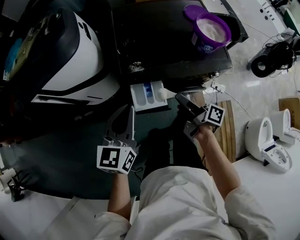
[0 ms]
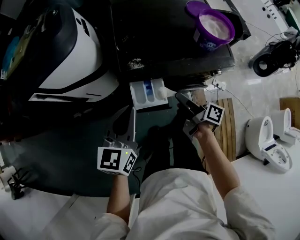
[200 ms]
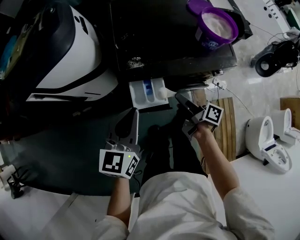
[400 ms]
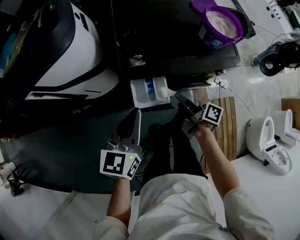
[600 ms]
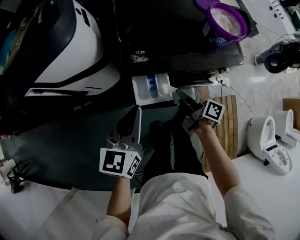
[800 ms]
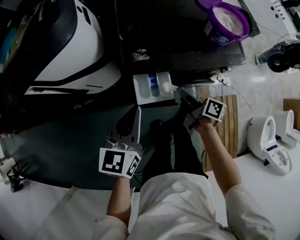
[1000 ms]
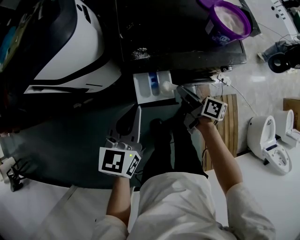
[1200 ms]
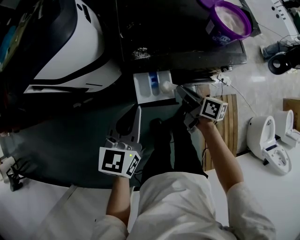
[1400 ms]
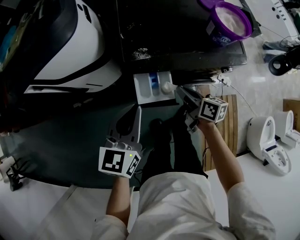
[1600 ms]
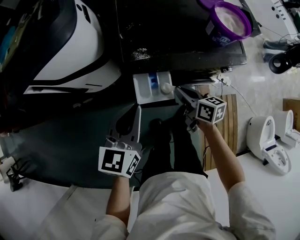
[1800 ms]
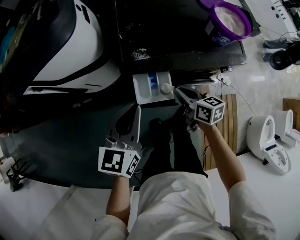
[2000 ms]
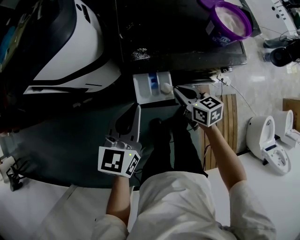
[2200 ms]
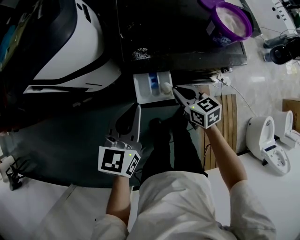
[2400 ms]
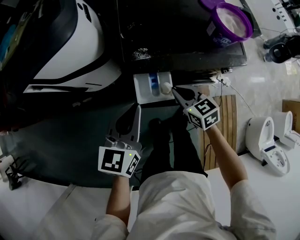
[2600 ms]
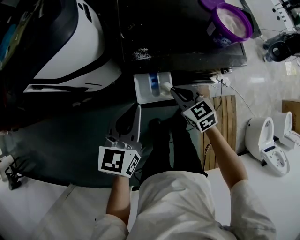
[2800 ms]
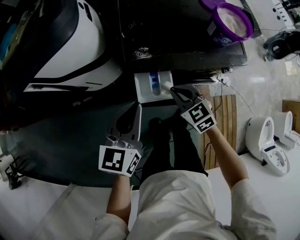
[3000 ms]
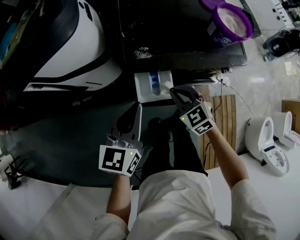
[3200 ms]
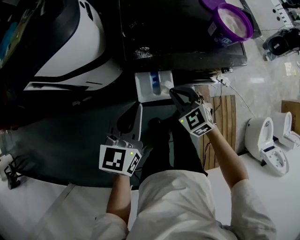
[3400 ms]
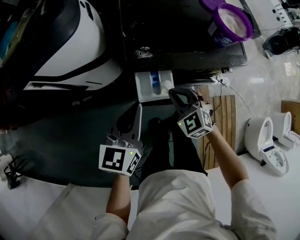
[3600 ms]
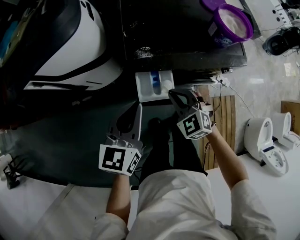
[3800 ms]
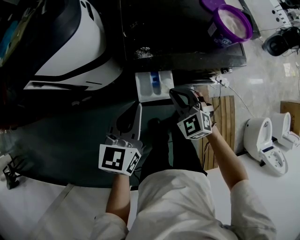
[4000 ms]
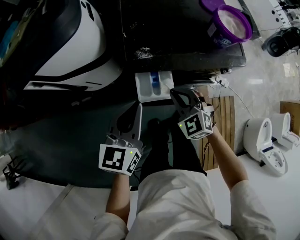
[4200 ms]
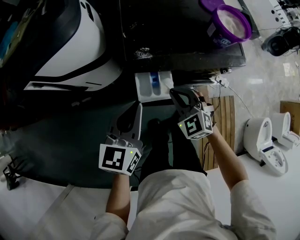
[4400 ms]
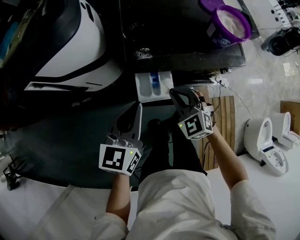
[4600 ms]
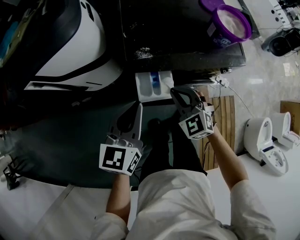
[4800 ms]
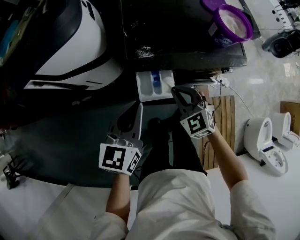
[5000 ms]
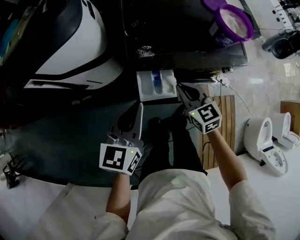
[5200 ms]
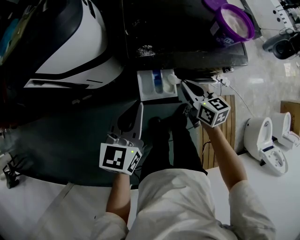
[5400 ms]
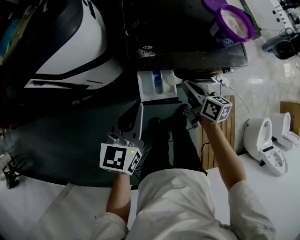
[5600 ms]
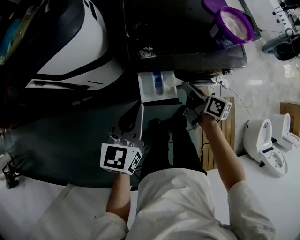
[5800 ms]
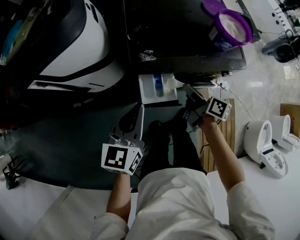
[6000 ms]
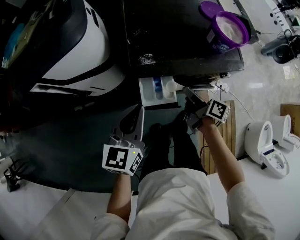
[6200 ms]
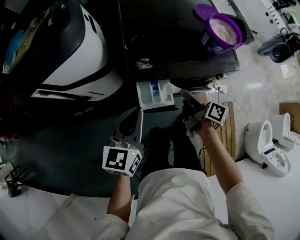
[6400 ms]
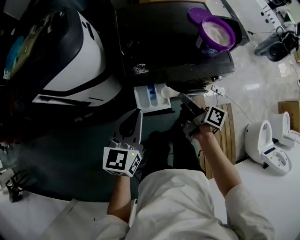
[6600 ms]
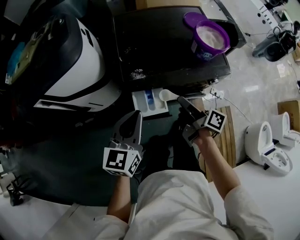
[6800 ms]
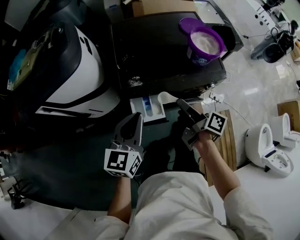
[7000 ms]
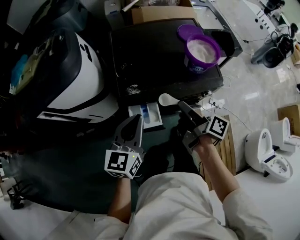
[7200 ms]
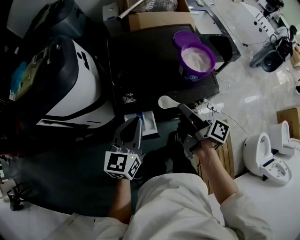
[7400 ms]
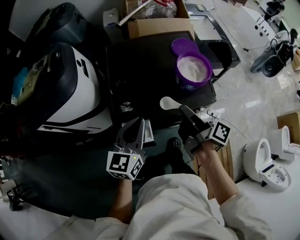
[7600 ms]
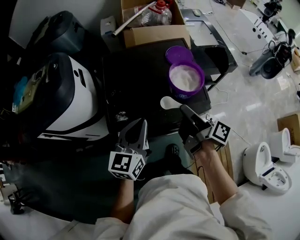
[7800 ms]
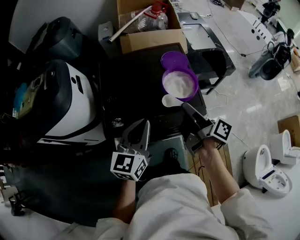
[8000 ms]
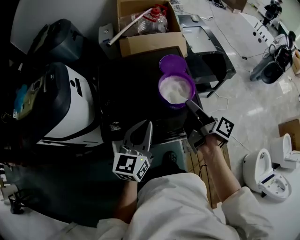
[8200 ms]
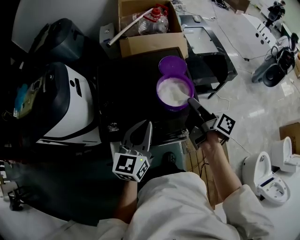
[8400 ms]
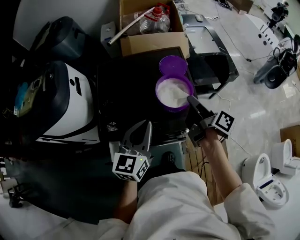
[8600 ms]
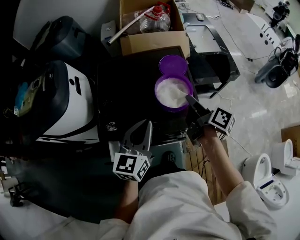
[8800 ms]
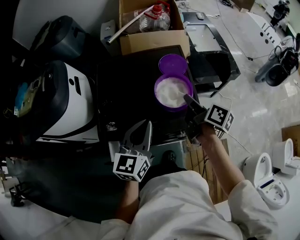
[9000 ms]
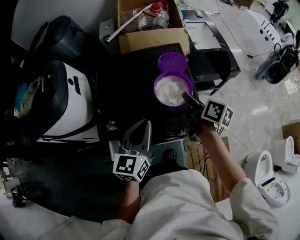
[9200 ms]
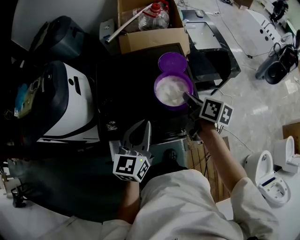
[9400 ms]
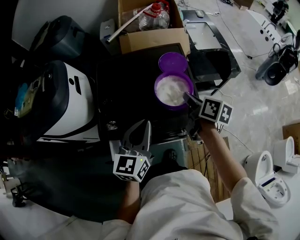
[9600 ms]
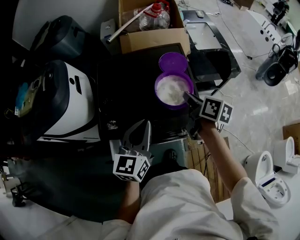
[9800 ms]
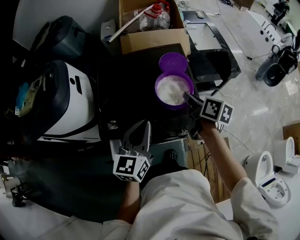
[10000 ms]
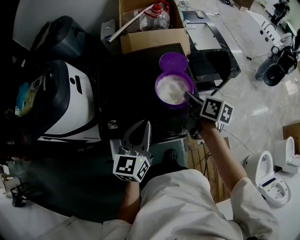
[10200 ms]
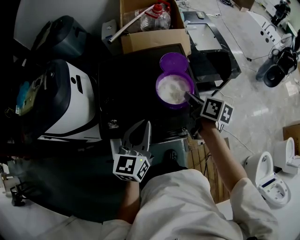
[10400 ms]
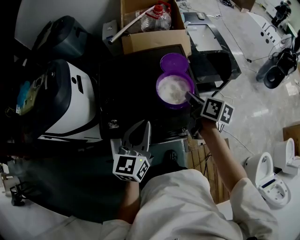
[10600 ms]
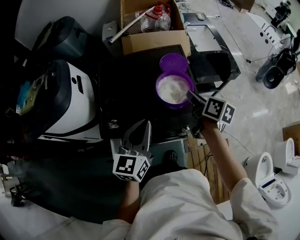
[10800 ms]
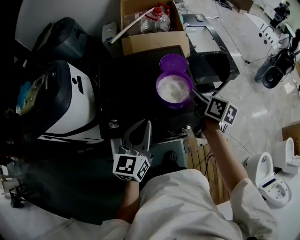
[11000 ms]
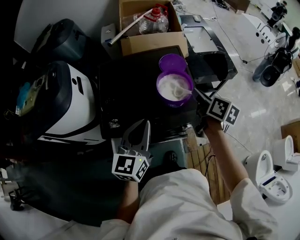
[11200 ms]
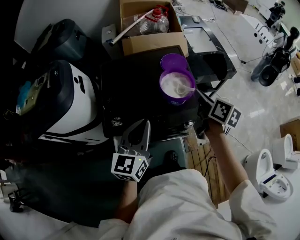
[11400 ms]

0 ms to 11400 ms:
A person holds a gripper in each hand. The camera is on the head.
0 ms to 1400 ms: The right gripper travels downward by about 5 cm, and rotates roughly 30 degrees.
1400 ms to 2800 ms: The right gripper rotates around the line of its fingers by some 60 degrees, counterclockwise from behind.
2800 ms to 4200 ms: The right gripper changes its angle by roughly 30 degrees.
4200 ms to 5600 ms: The right gripper travels to the right by roughly 5 cm, and rolls clockwise, seen from behind, by approximately 70 degrees.
5600 ms to 7200 ms: The right gripper moves upward, approximately 15 cm, and changes its angle by roughly 40 degrees. The left gripper moves to the right and upward, about 10 cm.
7200 ms to 8600 ms: Both grippers move to the right and forward, about 25 cm.
8600 ms to 10000 ms: The right gripper changes its angle by about 30 degrees.
10000 ms to 11400 ms: The right gripper moves approximately 5 cm; the left gripper ends up roughly 5 cm from where it was.

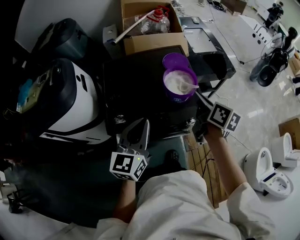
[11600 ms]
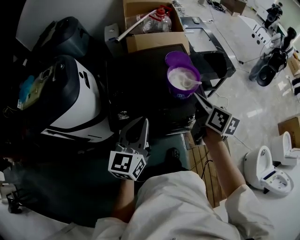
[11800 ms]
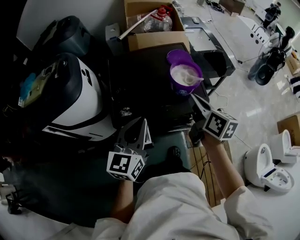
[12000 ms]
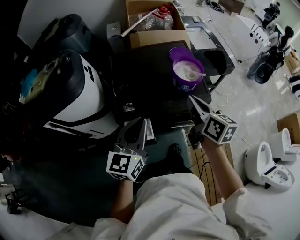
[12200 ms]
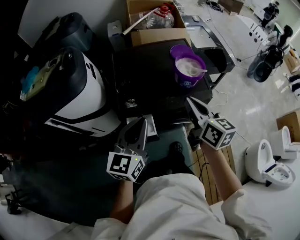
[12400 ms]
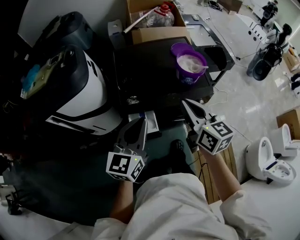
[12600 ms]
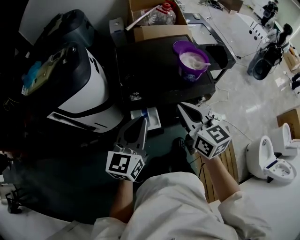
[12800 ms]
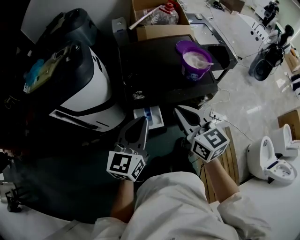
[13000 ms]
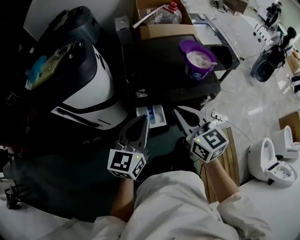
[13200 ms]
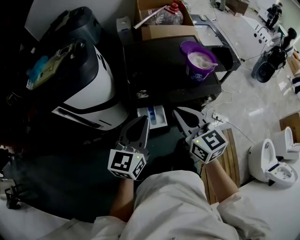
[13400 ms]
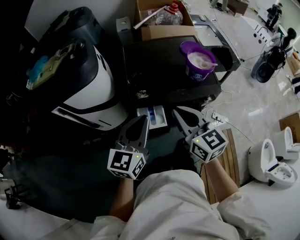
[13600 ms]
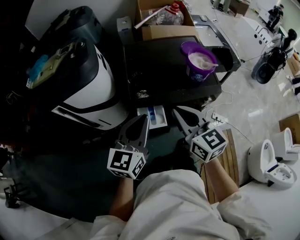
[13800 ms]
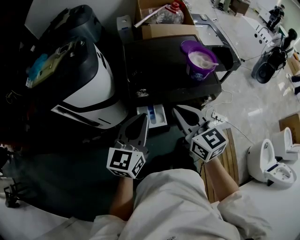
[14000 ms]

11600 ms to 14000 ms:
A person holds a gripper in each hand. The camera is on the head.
11600 ms to 12800 ms: The left gripper goes approximately 15 cm backward and to the left. Meanwhile the right gripper shifts about 25 cm backward and to the left, and turns by roughly 30 degrees.
12800 ms to 14000 ms: The right gripper shifts some 5 cm to the left.

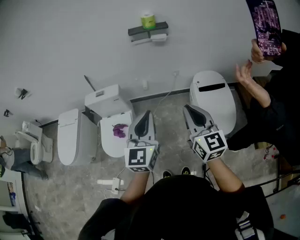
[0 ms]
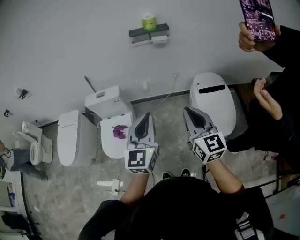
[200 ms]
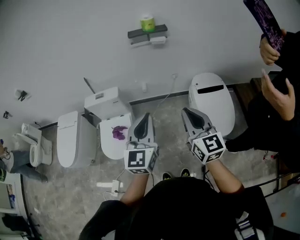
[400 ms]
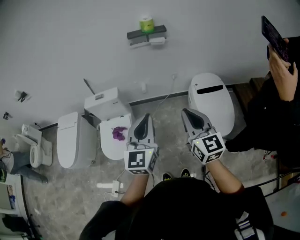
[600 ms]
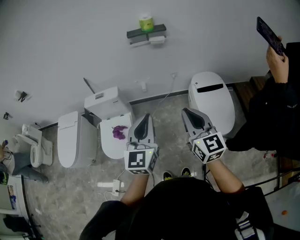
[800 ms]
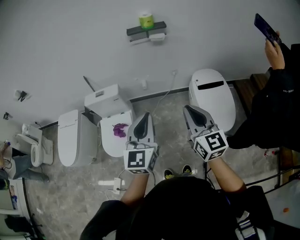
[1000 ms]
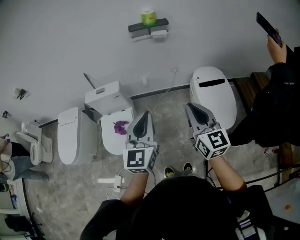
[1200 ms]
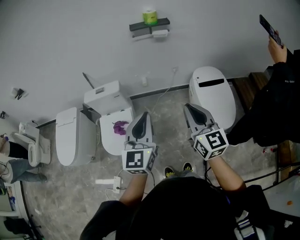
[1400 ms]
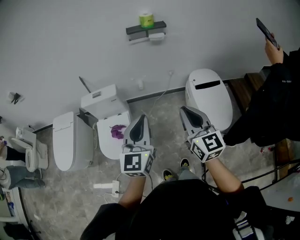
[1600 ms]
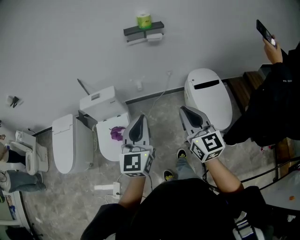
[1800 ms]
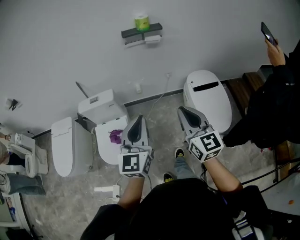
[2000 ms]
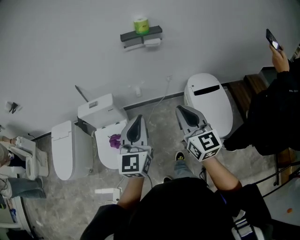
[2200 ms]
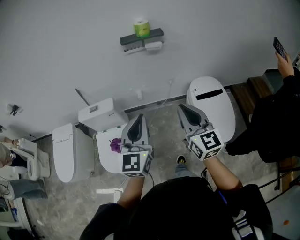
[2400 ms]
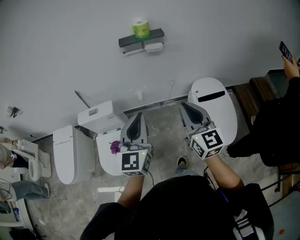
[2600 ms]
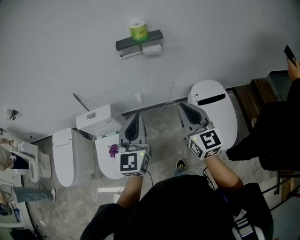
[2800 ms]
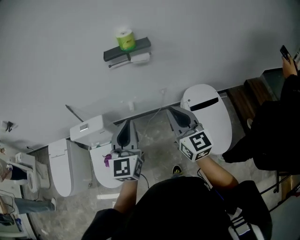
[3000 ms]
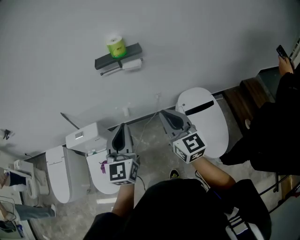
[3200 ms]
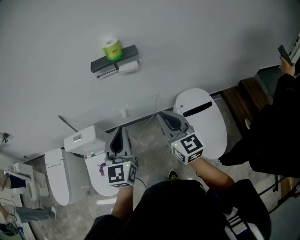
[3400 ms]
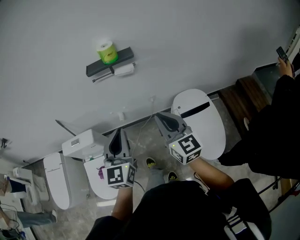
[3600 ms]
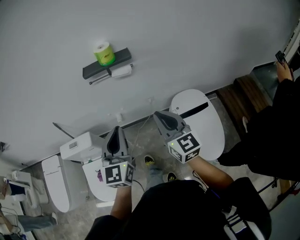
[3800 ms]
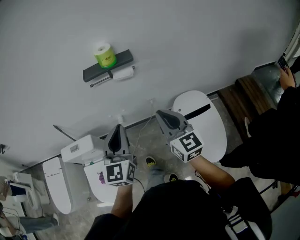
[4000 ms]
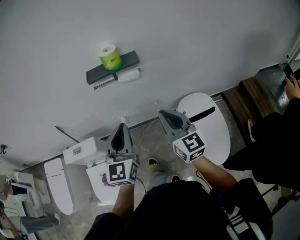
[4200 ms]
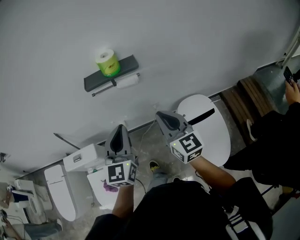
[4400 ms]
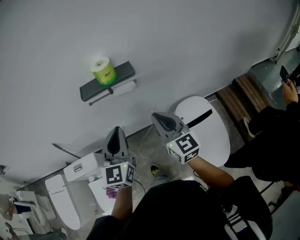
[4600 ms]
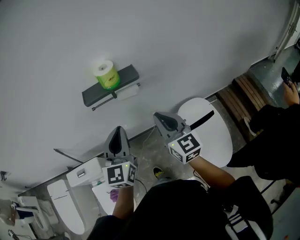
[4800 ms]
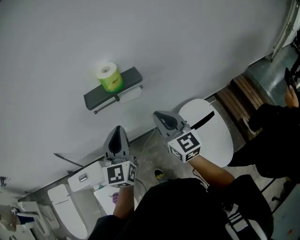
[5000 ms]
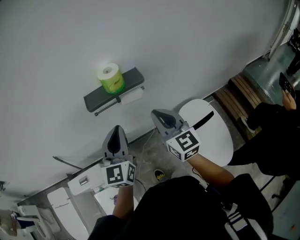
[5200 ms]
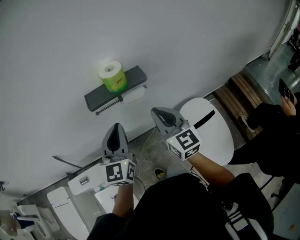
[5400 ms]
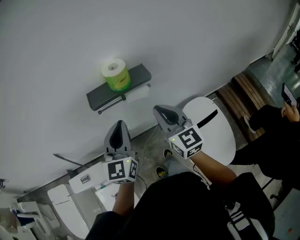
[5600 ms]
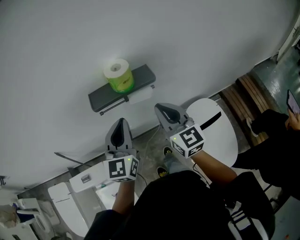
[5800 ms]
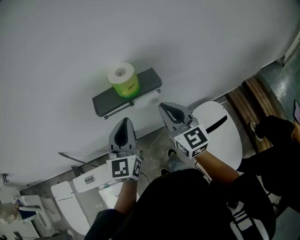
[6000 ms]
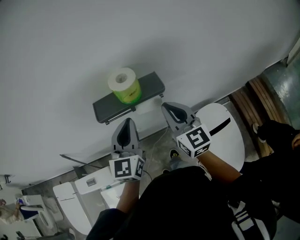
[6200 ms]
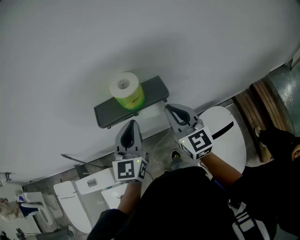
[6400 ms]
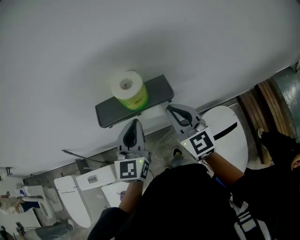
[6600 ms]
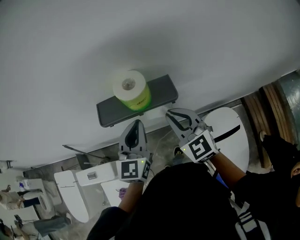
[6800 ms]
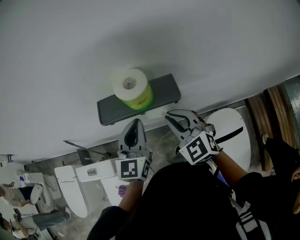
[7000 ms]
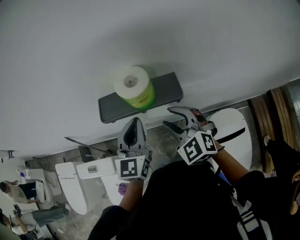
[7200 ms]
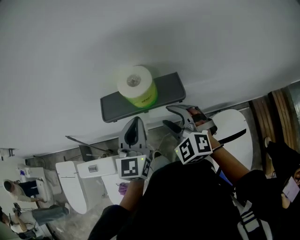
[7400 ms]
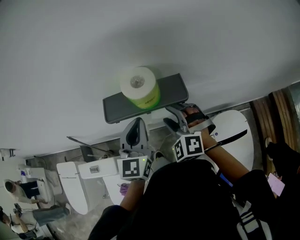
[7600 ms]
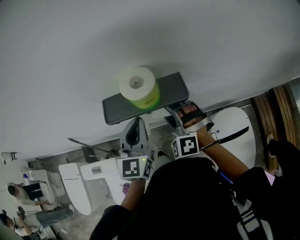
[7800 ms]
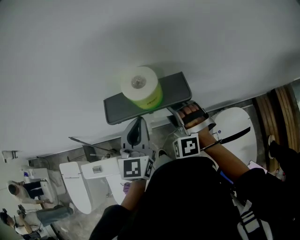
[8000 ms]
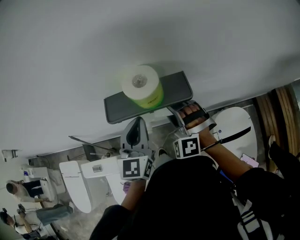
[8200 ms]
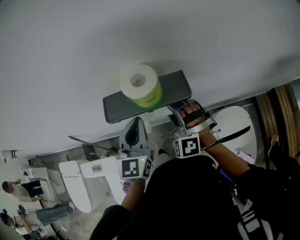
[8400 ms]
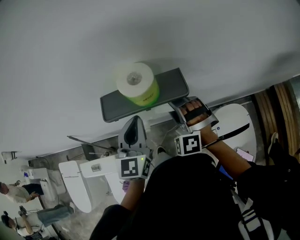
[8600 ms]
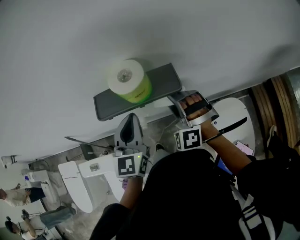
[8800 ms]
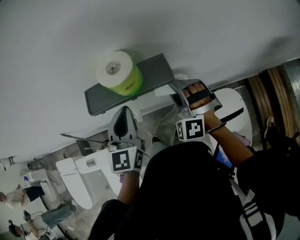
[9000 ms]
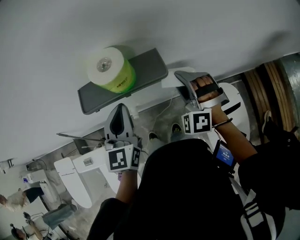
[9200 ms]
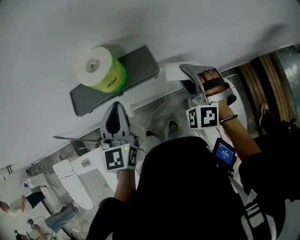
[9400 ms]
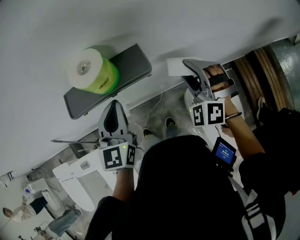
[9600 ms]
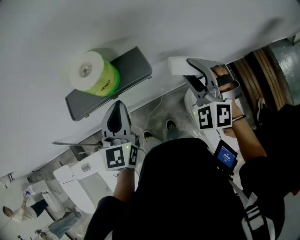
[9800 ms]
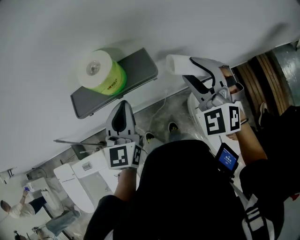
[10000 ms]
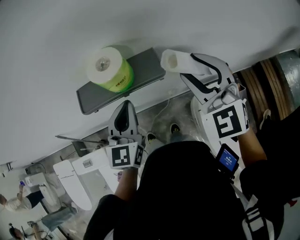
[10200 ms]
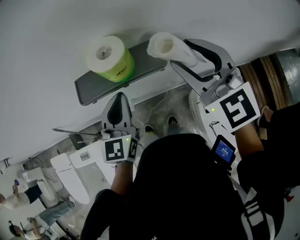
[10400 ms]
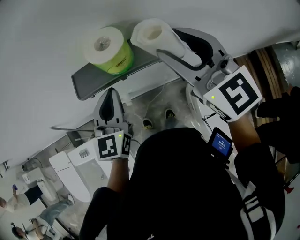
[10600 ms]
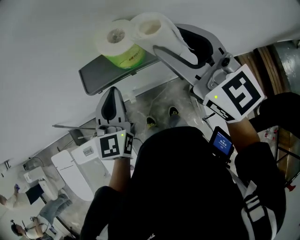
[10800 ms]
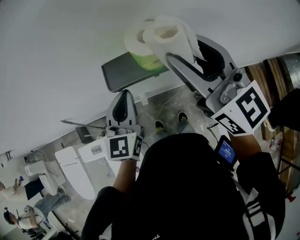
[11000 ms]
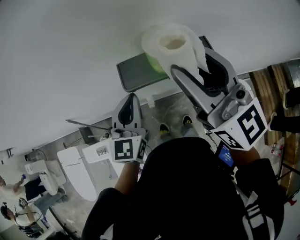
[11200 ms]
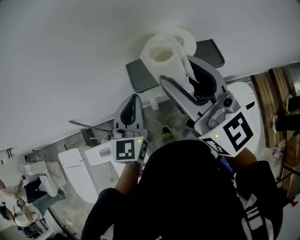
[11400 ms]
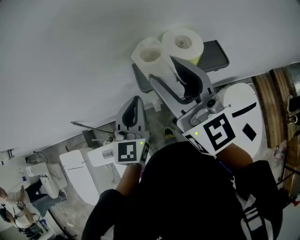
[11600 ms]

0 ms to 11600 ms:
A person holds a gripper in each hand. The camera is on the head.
0 ms to 1400 ms: The left gripper is displaced to the left by approximately 5 cm.
1400 ms to 2800 ms: The two grippers go about 20 cm forward.
2800 ms to 4400 ms: The two grippers go approximately 20 cm forward.
4400 ms to 5800 ms: The right gripper is displaced forward and to the left by some 15 cm; the left gripper is displaced forward by some 15 cm.
5800 ms to 7200 ms: Both grippers move forward and downward, about 10 cm. The right gripper turns by some 50 degrees, and opens its fingers.
7200 ms to 8800 ms: The right gripper moves approximately 5 cm, and swivels about 40 degrees.
8800 ms to 10200 ms: The right gripper is displaced upward and to the right by about 20 cm, and swivels approximately 40 degrees.
10200 ms to 11600 ms: Both grippers move to the left, some 20 cm. The right gripper twists approximately 40 degrees clockwise, seen from behind.
